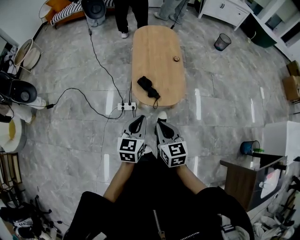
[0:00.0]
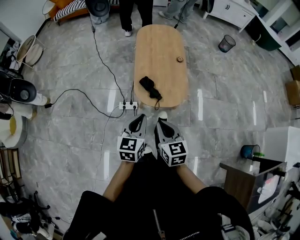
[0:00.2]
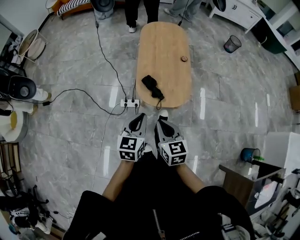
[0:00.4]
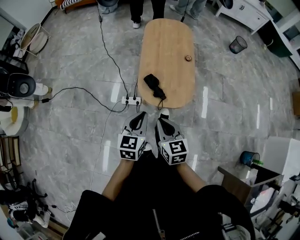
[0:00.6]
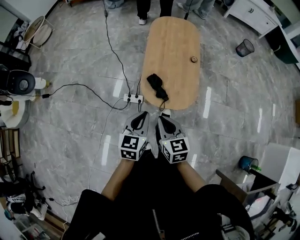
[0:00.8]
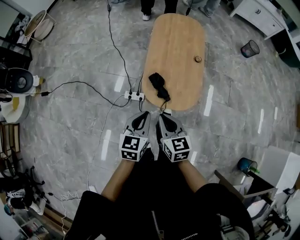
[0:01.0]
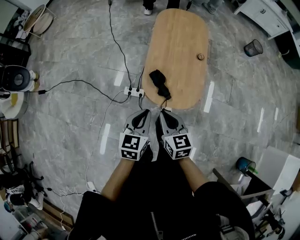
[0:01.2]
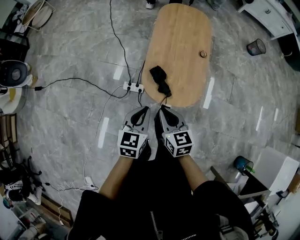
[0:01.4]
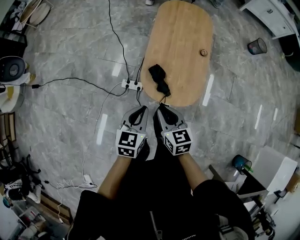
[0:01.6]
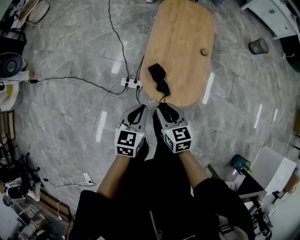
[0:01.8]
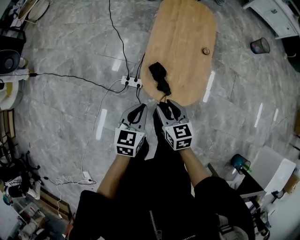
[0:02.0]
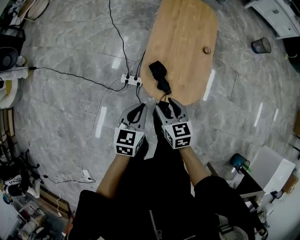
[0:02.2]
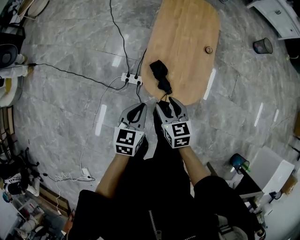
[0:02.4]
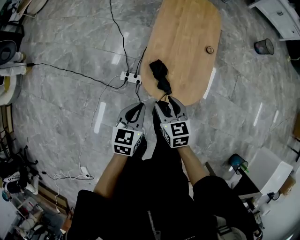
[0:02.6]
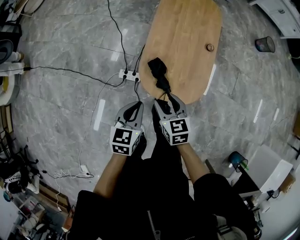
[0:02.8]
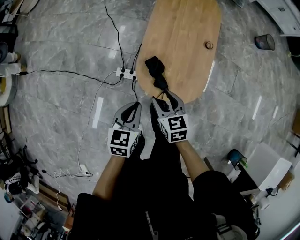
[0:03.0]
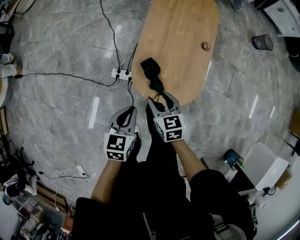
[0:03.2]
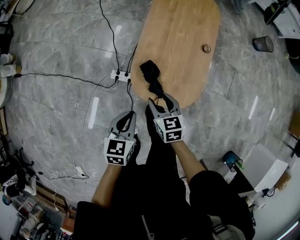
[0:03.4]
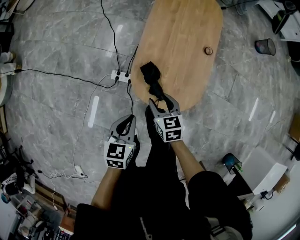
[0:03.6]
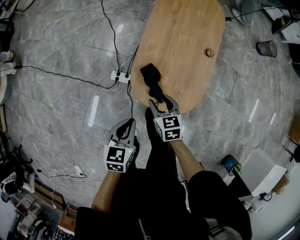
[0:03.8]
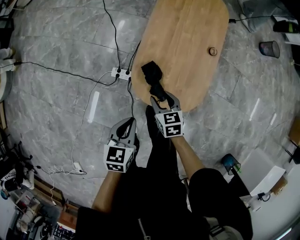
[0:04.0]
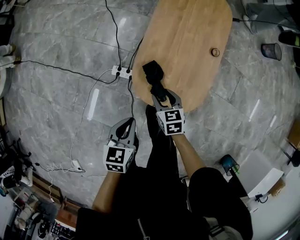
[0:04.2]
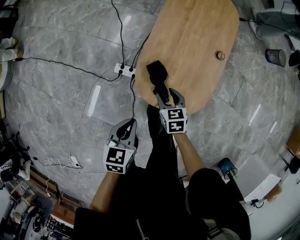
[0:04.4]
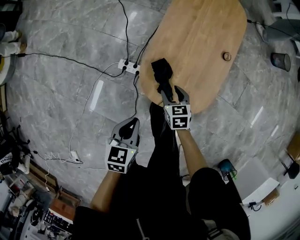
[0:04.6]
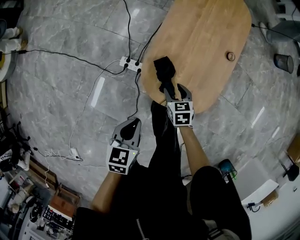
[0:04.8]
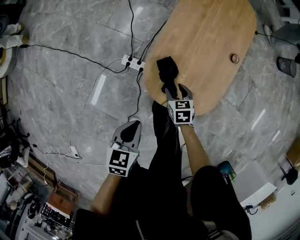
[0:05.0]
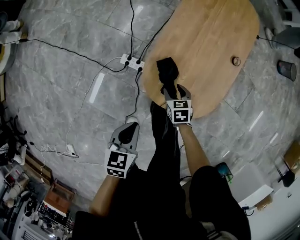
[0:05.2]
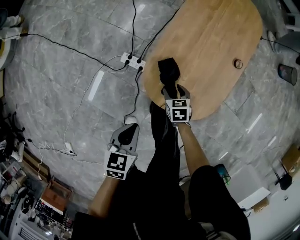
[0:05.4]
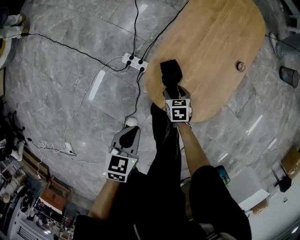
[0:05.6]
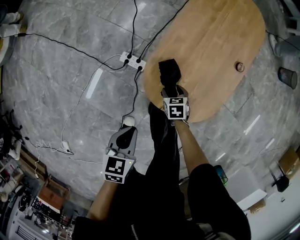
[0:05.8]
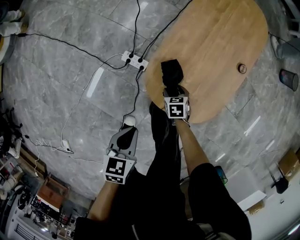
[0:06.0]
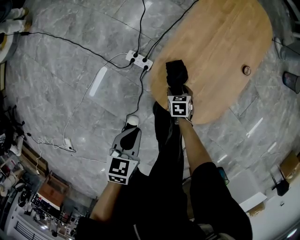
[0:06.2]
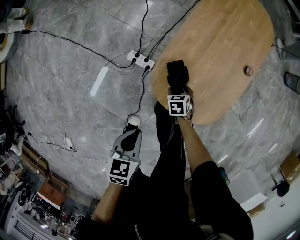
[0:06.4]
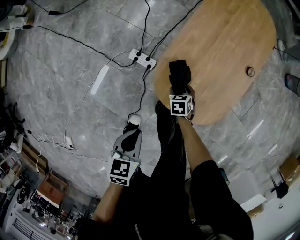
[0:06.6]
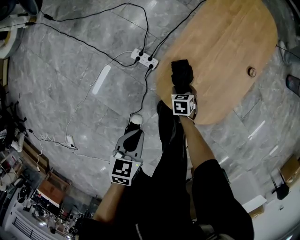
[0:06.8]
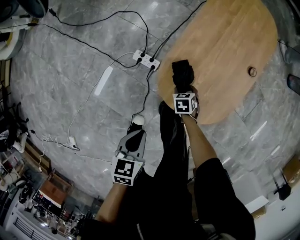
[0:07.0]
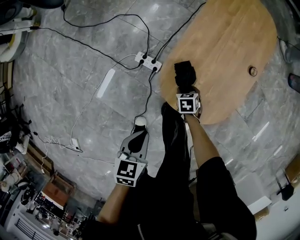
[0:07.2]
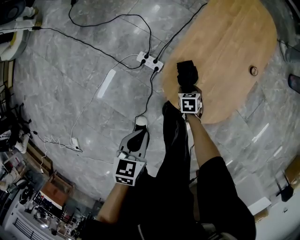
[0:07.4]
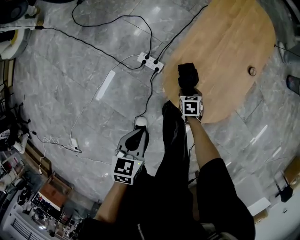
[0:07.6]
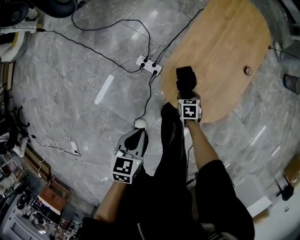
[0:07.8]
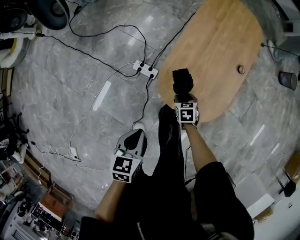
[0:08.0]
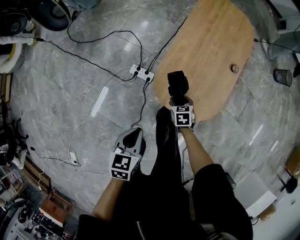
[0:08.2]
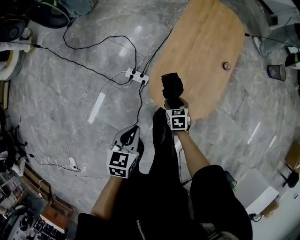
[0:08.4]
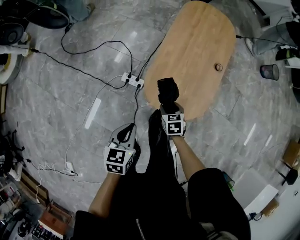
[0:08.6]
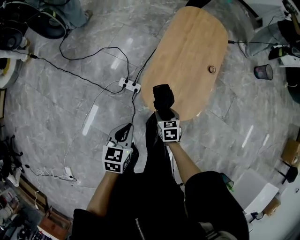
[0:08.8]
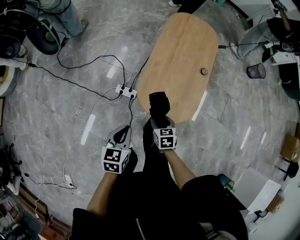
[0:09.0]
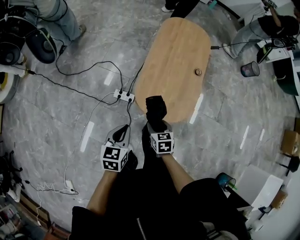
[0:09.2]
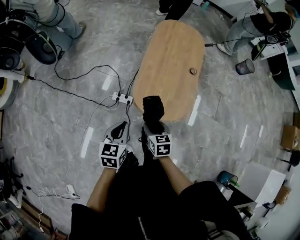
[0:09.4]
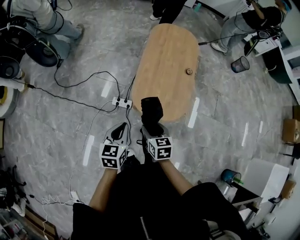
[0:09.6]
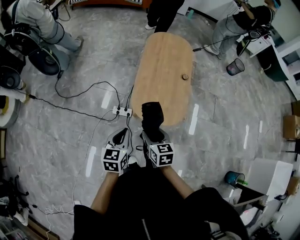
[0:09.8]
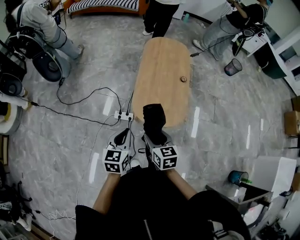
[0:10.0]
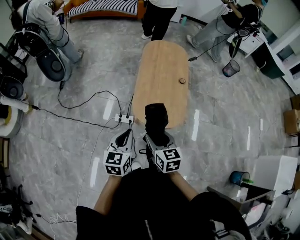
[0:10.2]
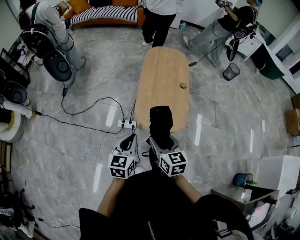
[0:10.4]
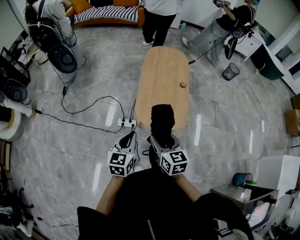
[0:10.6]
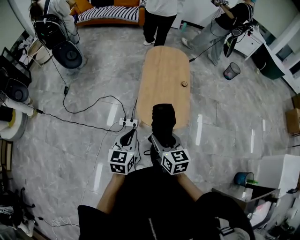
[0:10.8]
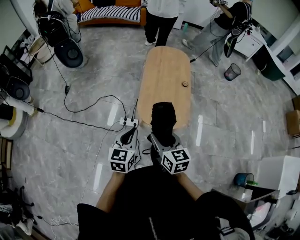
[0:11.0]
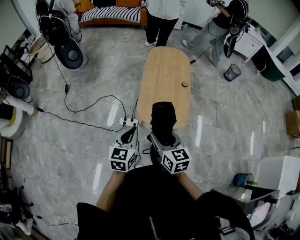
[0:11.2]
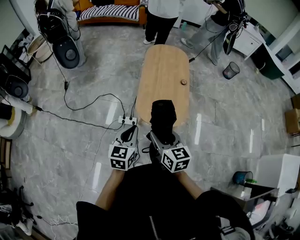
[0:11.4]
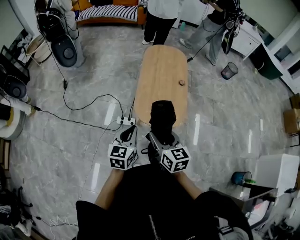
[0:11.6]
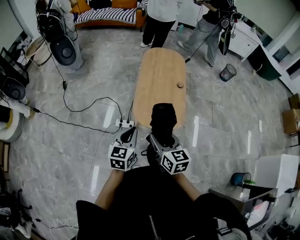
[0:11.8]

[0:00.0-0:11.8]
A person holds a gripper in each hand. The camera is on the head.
0:00.0 to 0:01.4: The grippers both shift forward and downward by approximately 15 cm.
0:01.4 to 0:03.0: The left gripper shifts some 5 cm downward, while the right gripper goes approximately 15 cm downward and forward, and opens its fingers.
0:03.0 to 0:04.4: The left gripper is displaced downward by about 5 cm; the right gripper shifts about 15 cm downward and forward.
0:04.4 to 0:06.0: The right gripper shifts about 15 cm downward; the left gripper ends up some 5 cm from where it was.
0:06.0 to 0:07.4: The grippers make only small movements.
0:07.4 to 0:08.8: The right gripper moves upward and backward, some 20 cm. The left gripper travels upward by about 10 cm.
0:08.8 to 0:10.4: The right gripper moves upward and backward, approximately 30 cm, and tips its fingers upward by roughly 30 degrees. Meanwhile the left gripper moves upward and backward, approximately 15 cm, and rotates approximately 20 degrees.
0:10.4 to 0:11.8: There are only small adjustments of the grippers.

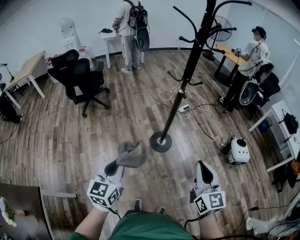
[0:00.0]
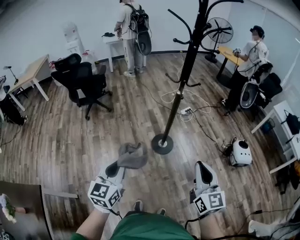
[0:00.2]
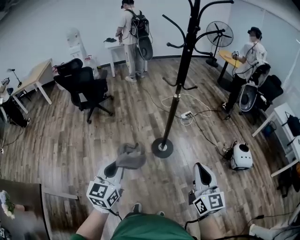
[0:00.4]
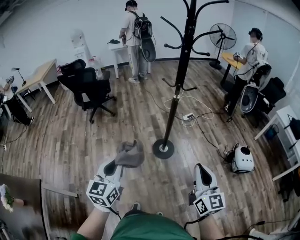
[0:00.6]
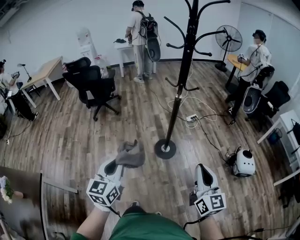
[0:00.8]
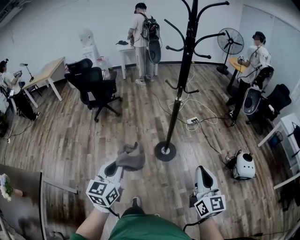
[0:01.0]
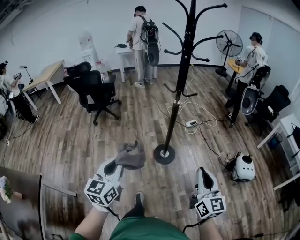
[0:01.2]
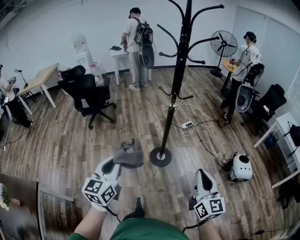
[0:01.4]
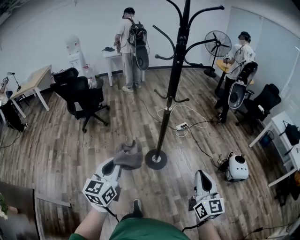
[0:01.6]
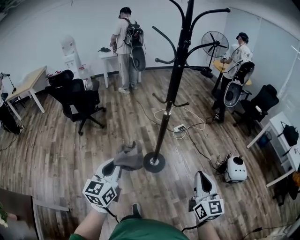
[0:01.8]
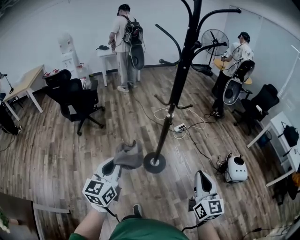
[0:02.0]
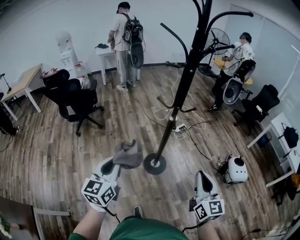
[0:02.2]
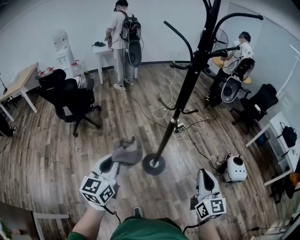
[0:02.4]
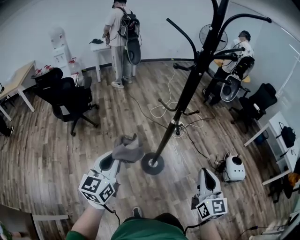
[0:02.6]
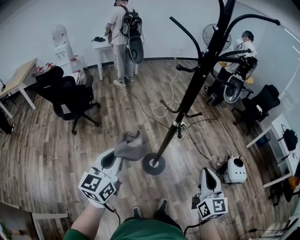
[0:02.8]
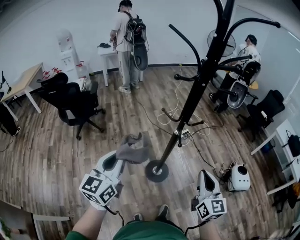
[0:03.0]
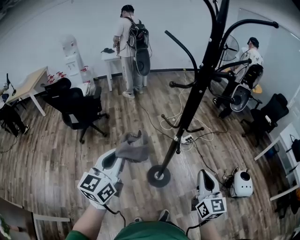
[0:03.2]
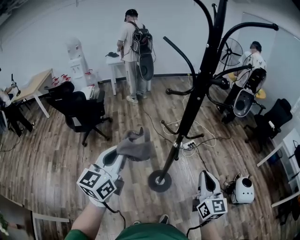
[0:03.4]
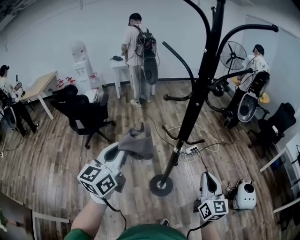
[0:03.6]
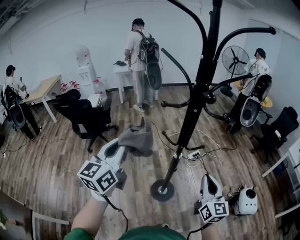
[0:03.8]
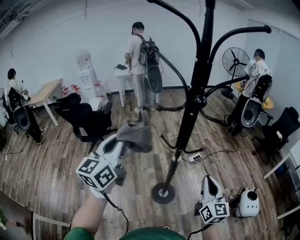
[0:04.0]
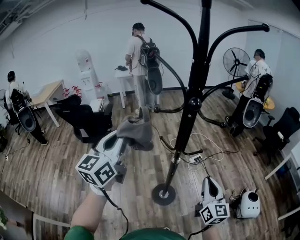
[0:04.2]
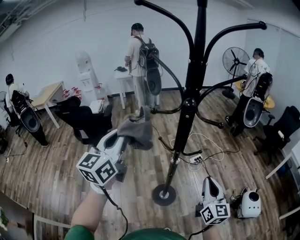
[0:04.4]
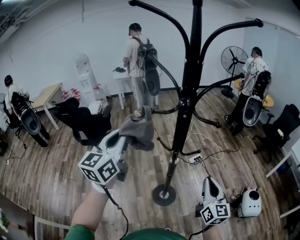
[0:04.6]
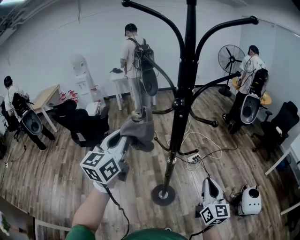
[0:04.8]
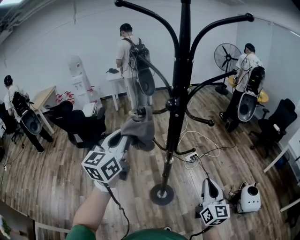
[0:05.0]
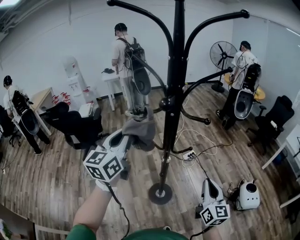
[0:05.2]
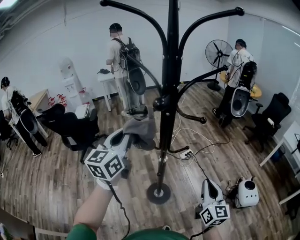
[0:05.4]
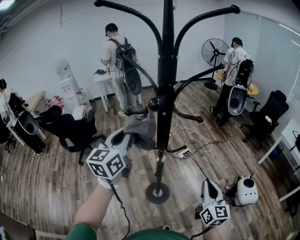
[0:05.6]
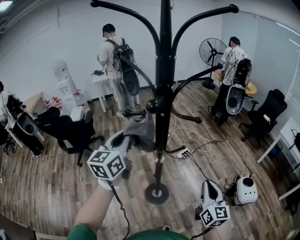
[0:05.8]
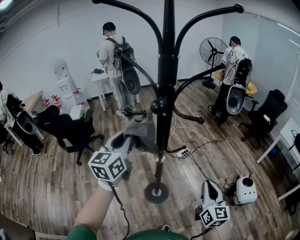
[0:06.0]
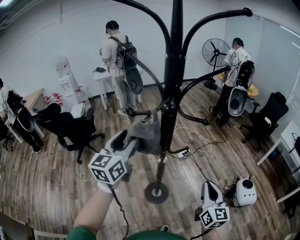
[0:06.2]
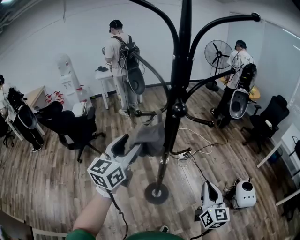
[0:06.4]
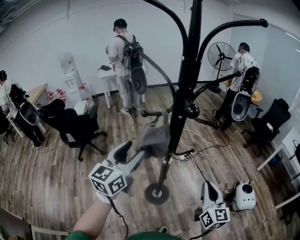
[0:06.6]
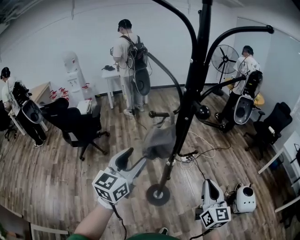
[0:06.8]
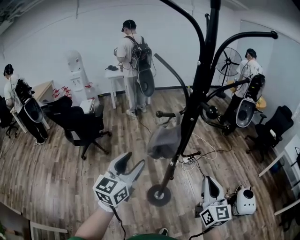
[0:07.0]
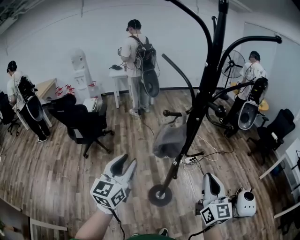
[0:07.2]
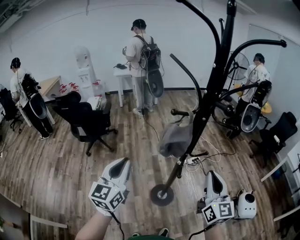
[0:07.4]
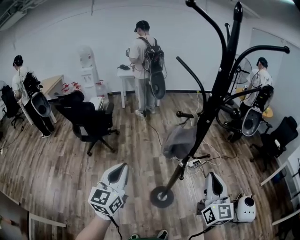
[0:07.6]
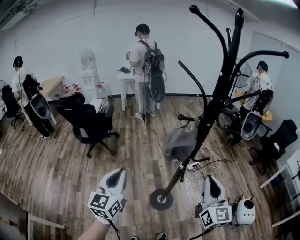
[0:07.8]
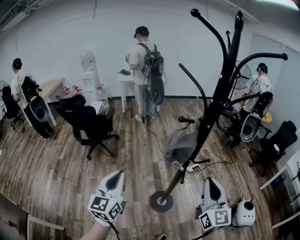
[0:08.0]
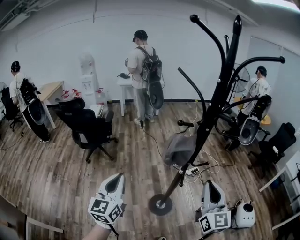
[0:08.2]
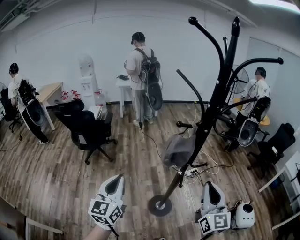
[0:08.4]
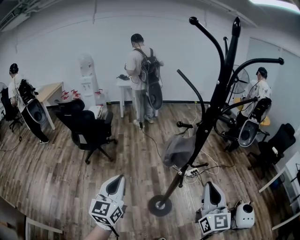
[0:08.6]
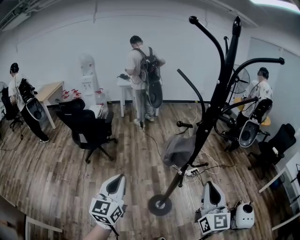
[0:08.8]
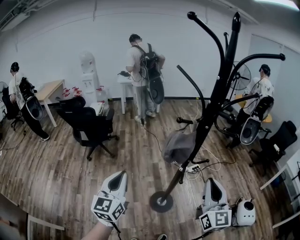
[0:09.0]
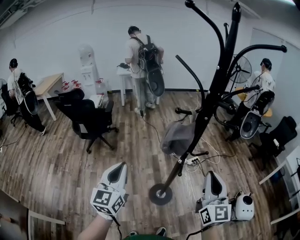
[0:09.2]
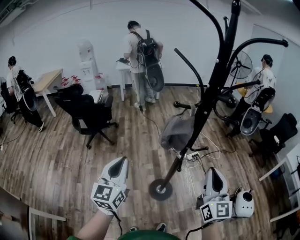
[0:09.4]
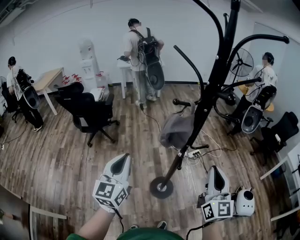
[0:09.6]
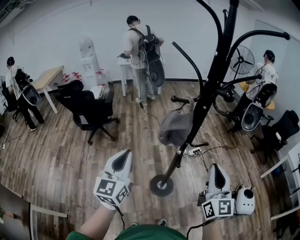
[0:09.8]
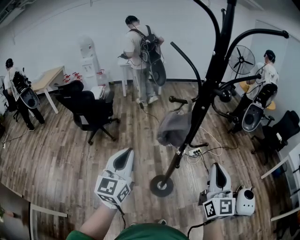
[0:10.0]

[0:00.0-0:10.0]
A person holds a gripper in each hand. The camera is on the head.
0:00.0 to 0:01.4: The left gripper goes roughly 15 cm to the right and upward, while the right gripper heads to the right, covering approximately 15 cm.
0:01.4 to 0:02.8: Both grippers travel together forward, roughly 25 cm.
0:02.8 to 0:04.2: The left gripper travels upward, forward and to the right by about 20 cm, while the right gripper goes roughly 15 cm forward and to the right.
0:04.2 to 0:05.8: The left gripper moves forward and to the right, some 15 cm, while the right gripper heads to the right, covering some 5 cm.
0:05.8 to 0:07.2: The left gripper goes some 15 cm backward, to the left and downward, and opens its fingers, while the right gripper heads to the left and upward, covering approximately 15 cm.
0:07.2 to 0:08.6: The right gripper ends up about 5 cm from where it was. The left gripper moves to the left and backward, some 10 cm, and closes its fingers.
0:08.6 to 0:10.0: Both grippers travel together to the right, roughly 5 cm.

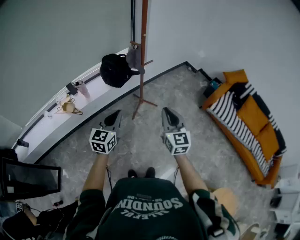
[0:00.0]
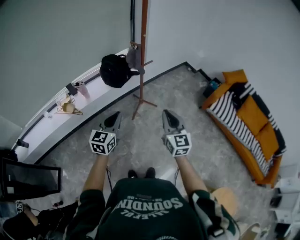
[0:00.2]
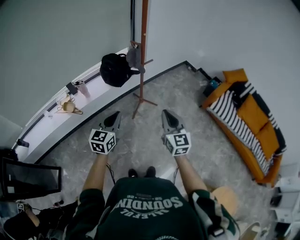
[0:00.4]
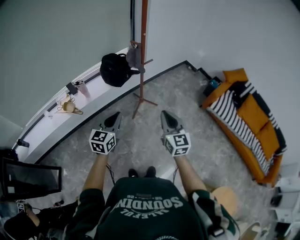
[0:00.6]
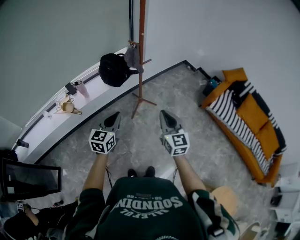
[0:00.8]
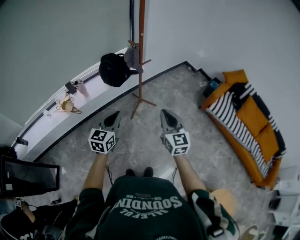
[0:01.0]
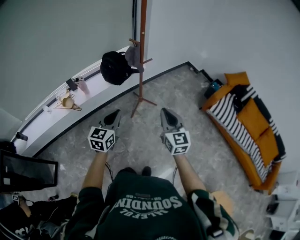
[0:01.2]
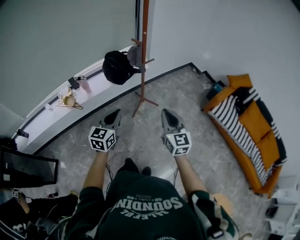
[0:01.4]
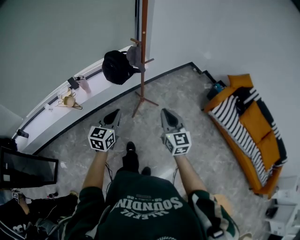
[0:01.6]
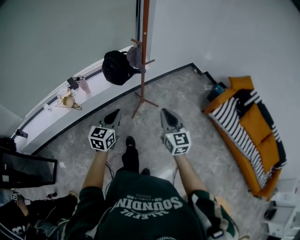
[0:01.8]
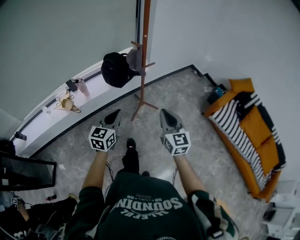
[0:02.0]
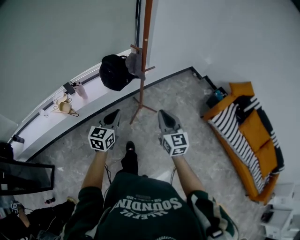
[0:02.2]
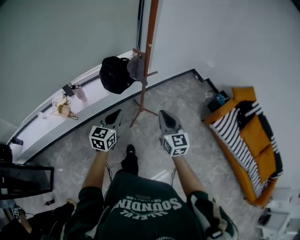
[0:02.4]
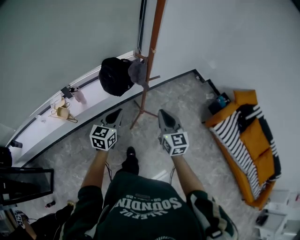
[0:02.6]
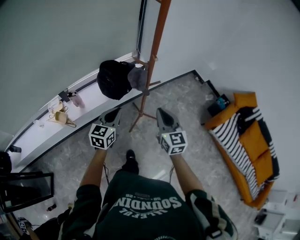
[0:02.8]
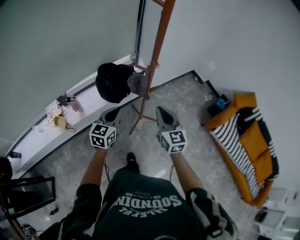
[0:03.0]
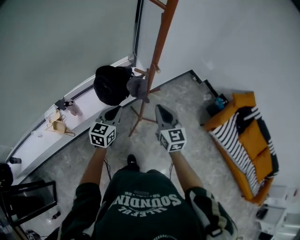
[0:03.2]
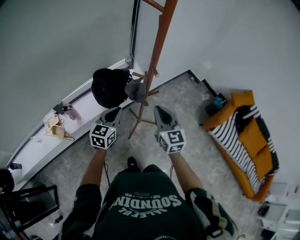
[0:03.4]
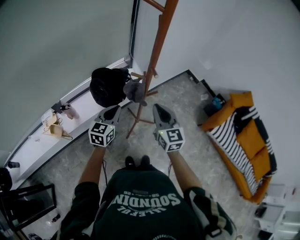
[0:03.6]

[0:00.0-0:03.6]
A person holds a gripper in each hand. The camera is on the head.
0:00.0 to 0:01.8: There are only small adjustments of the grippers.
0:01.8 to 0:03.6: Both grippers travel together forward, about 35 cm.
